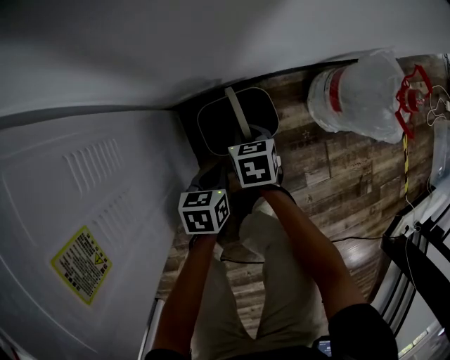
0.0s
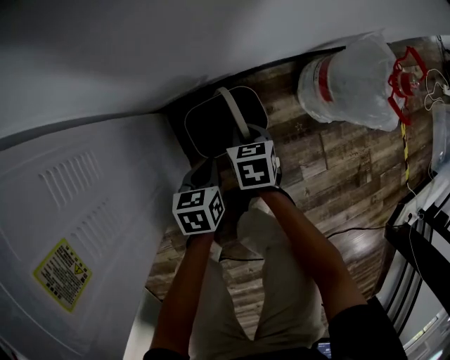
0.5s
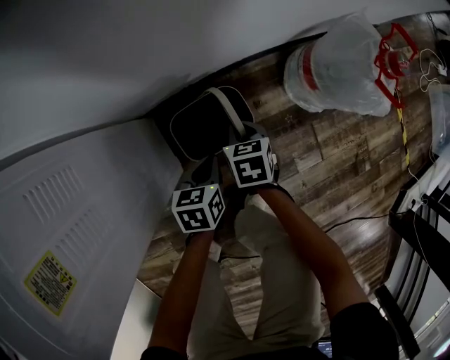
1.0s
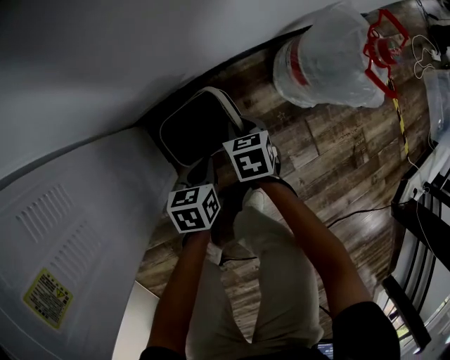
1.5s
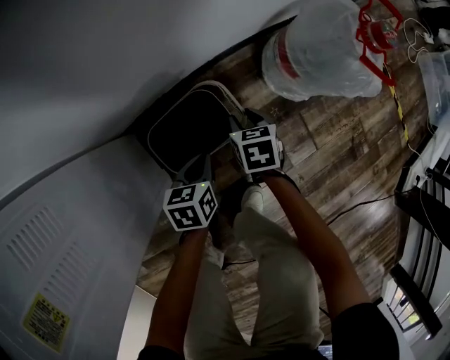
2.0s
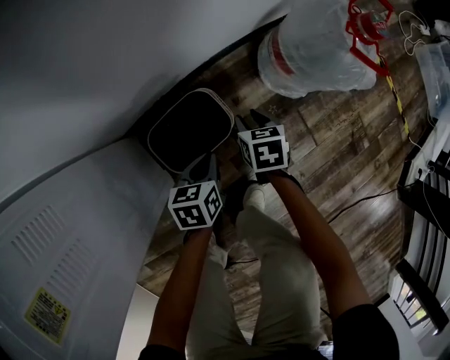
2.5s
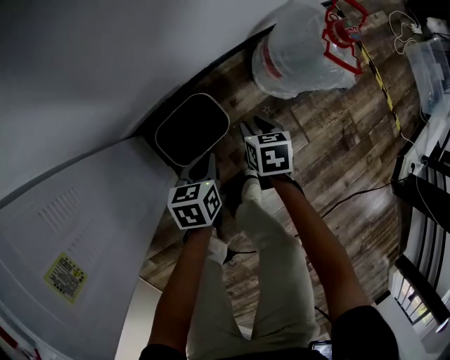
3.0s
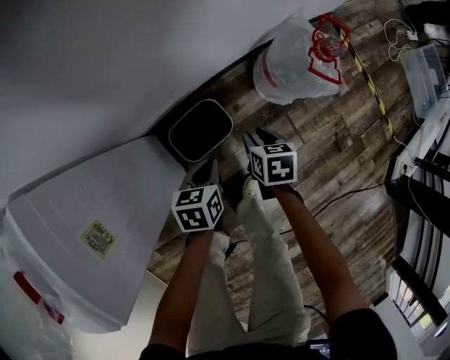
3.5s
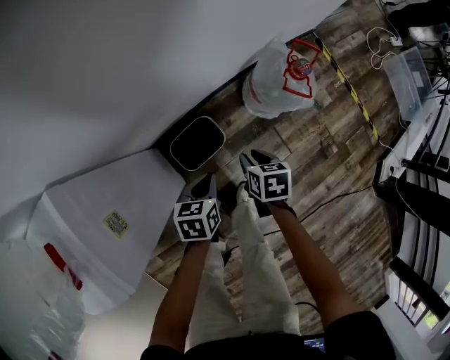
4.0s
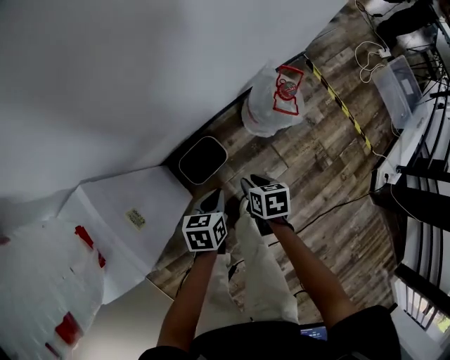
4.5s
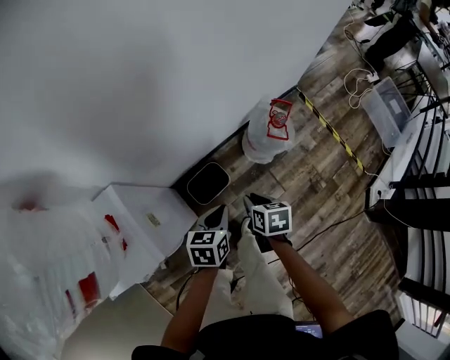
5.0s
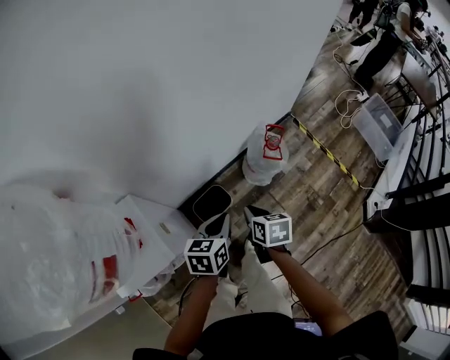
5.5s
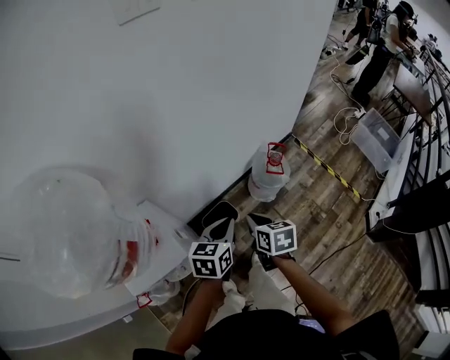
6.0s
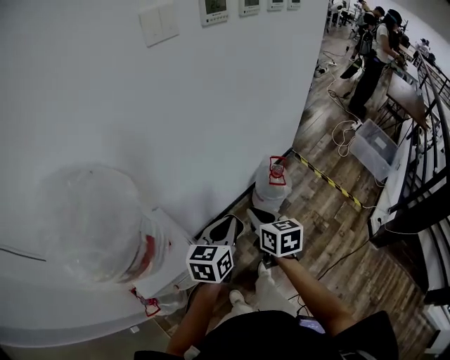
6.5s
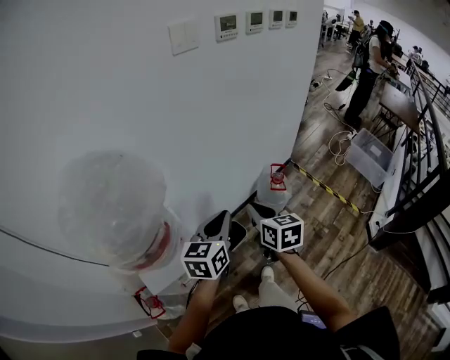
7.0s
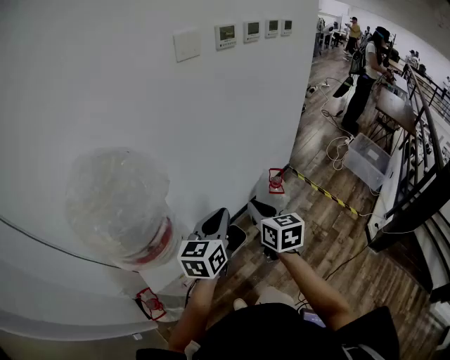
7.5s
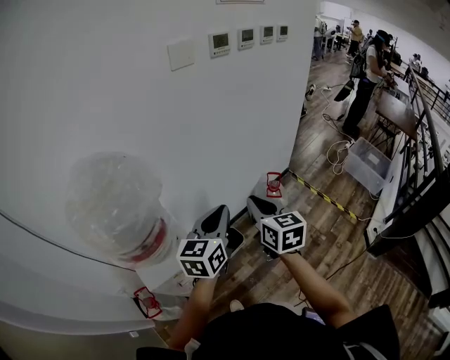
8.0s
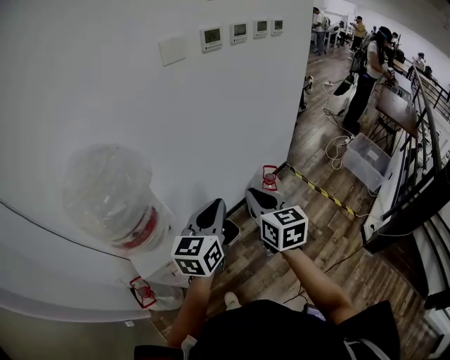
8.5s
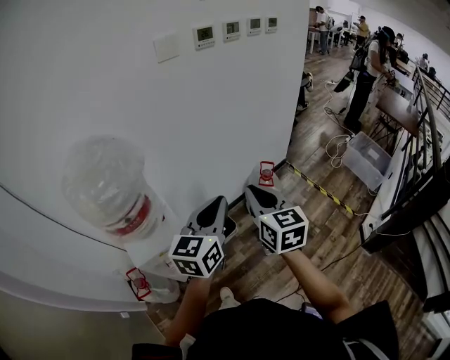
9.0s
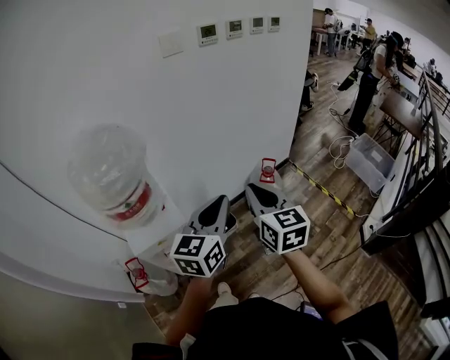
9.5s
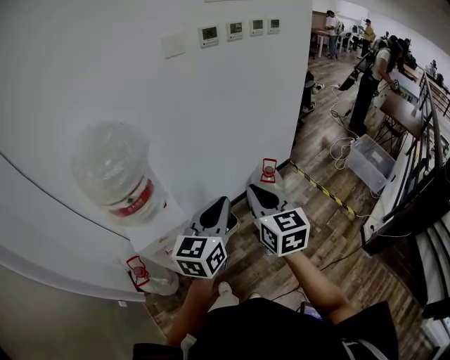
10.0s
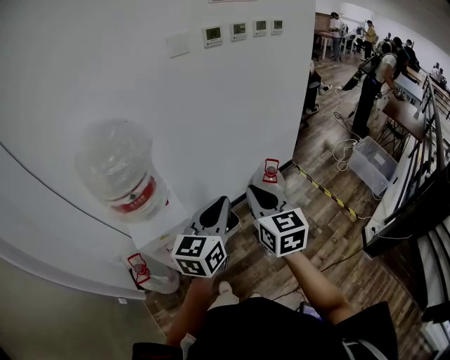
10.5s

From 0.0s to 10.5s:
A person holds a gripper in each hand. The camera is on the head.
From 0.0s to 2.0s: The left gripper travels to the right and downward by some 10 cm, while the right gripper shifts roughly 15 cm to the right and downward, and opens.
From 2.0s to 4.0s: Both grippers move upward, about 25 cm.
From 4.0s to 6.5s: The two grippers go some 50 cm upward. The right gripper points its fingers approximately 30 degrees further upward, and closes. The left gripper tilts its fingers roughly 30 degrees upward.
From 6.5s to 8.5s: Both grippers travel together upward and backward, some 20 cm. The right gripper swivels roughly 20 degrees.
From 8.5s to 10.5s: The right gripper is displaced backward by some 10 cm, while the left gripper shifts approximately 10 cm backward and to the right.

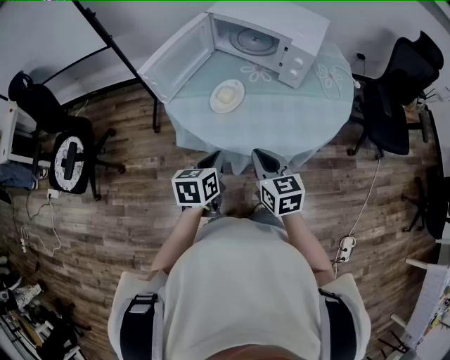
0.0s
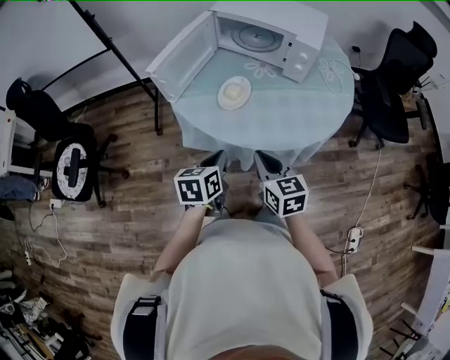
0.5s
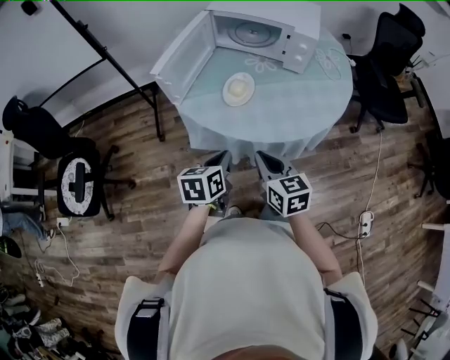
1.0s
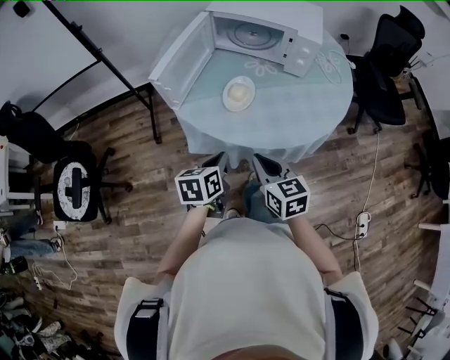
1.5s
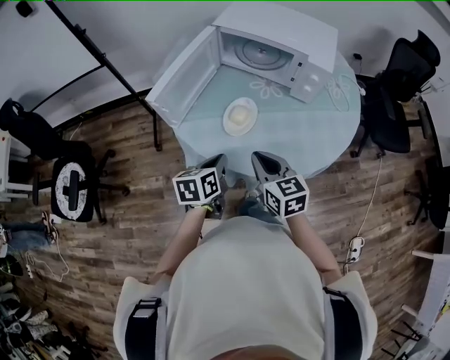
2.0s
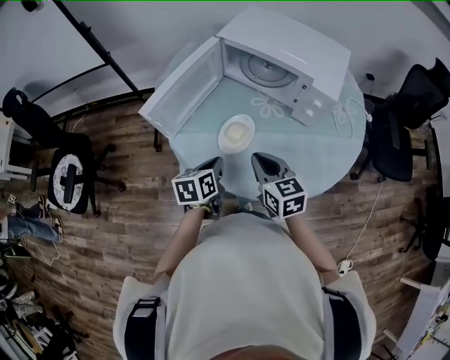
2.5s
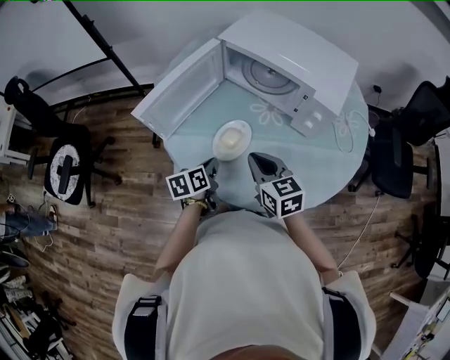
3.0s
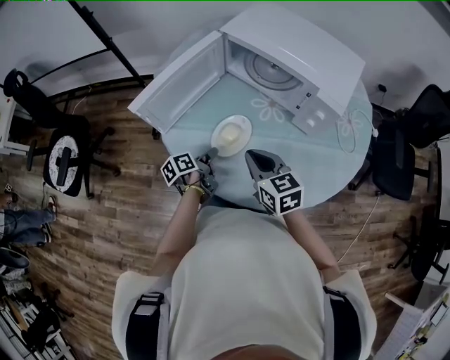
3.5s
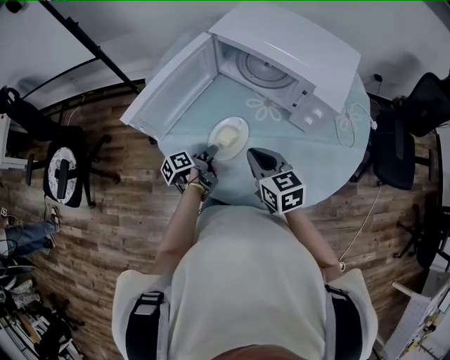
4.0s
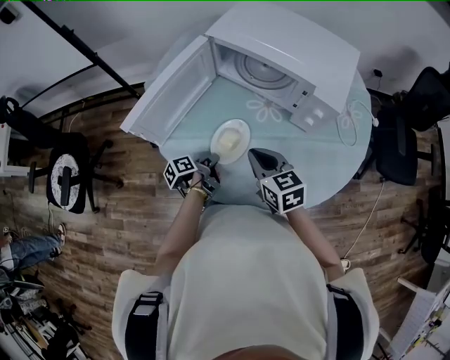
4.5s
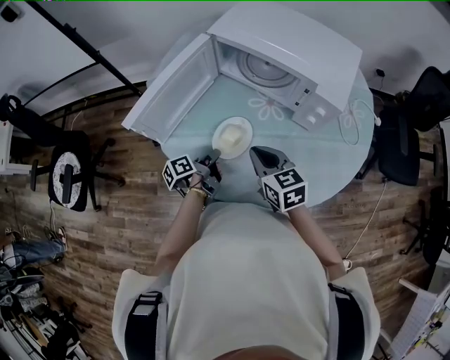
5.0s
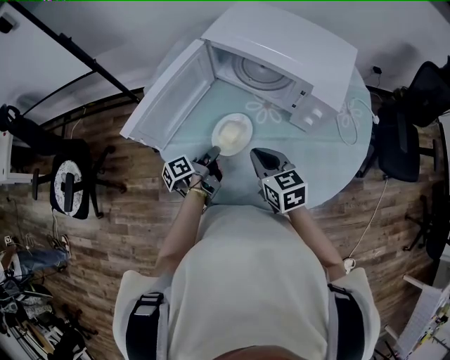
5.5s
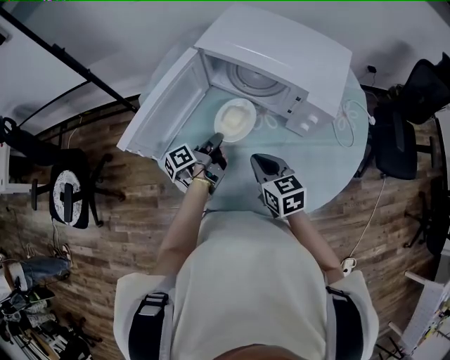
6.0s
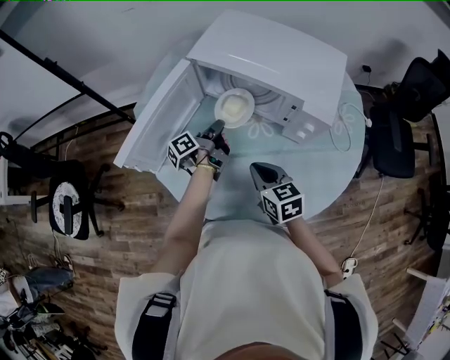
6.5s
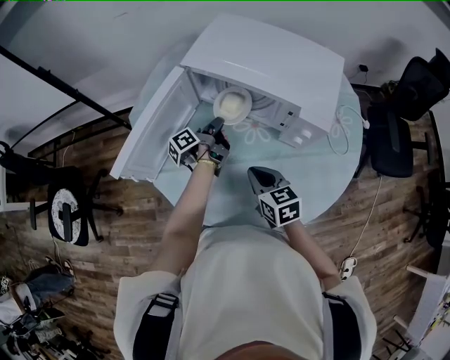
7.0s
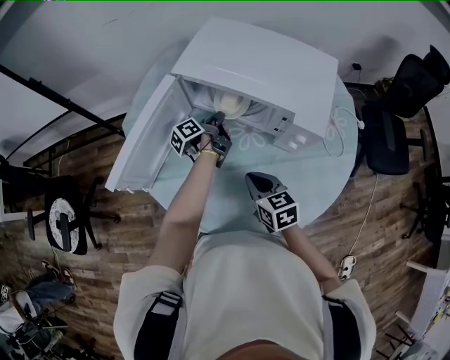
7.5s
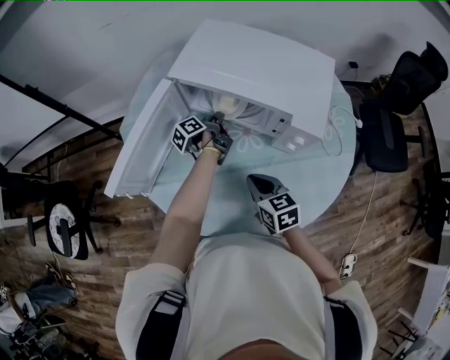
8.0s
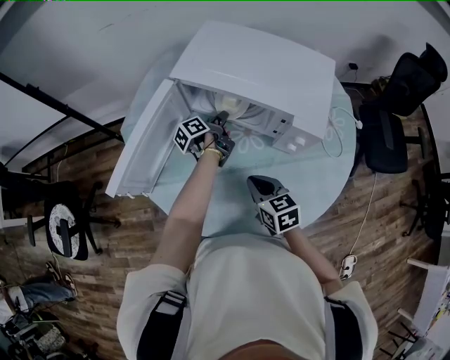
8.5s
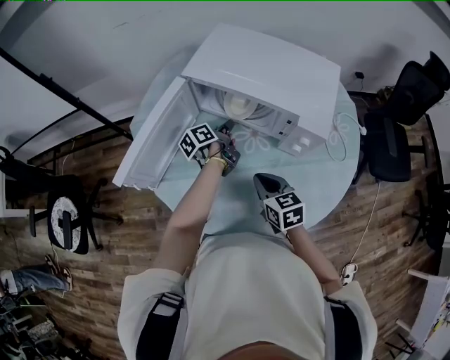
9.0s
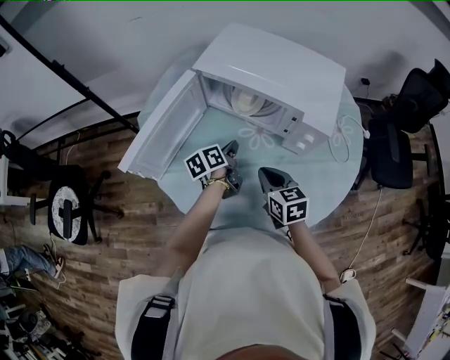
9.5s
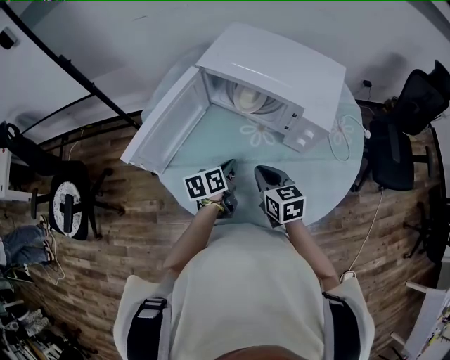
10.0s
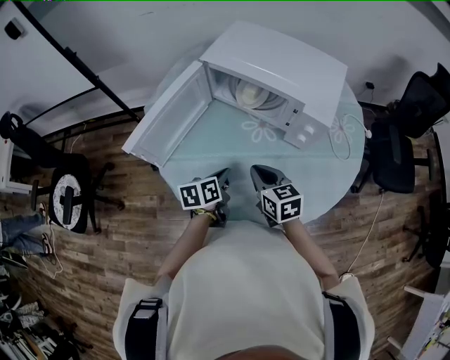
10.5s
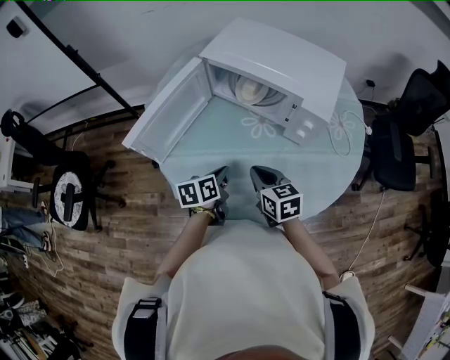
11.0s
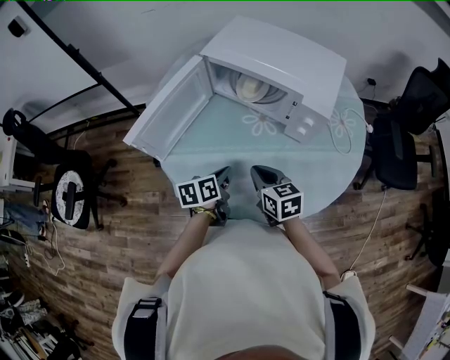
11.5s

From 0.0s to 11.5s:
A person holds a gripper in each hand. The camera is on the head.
From 0.0s to 2.0s: The right gripper is displaced to the left and forward by approximately 10 cm, while the left gripper moves forward and to the left, approximately 10 cm.
From 2.0s to 4.0s: The right gripper shifts some 15 cm forward and to the right; the left gripper shifts about 20 cm downward and forward, twists roughly 50 degrees counterclockwise, seen from behind, and opens its fingers.
From 4.0s to 6.0s: The left gripper goes some 10 cm forward and upward, and closes.
From 6.0s to 7.5s: The left gripper is displaced forward and to the right by roughly 15 cm.
From 7.5s to 9.5s: The left gripper goes some 10 cm backward, and turns by some 30 degrees.
From 9.5s to 11.5s: The right gripper is displaced backward by about 5 cm. The left gripper heads backward, covering roughly 15 cm.

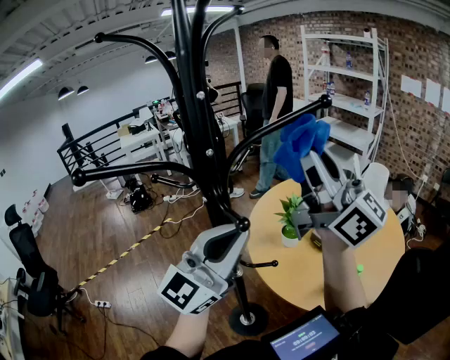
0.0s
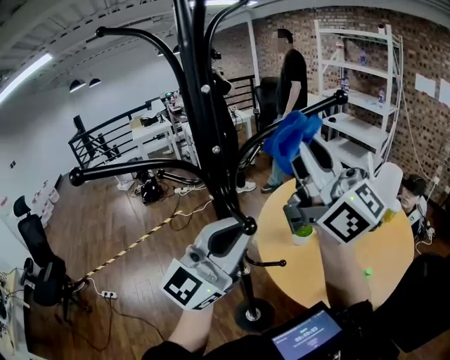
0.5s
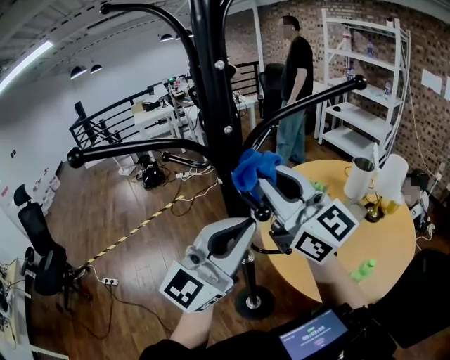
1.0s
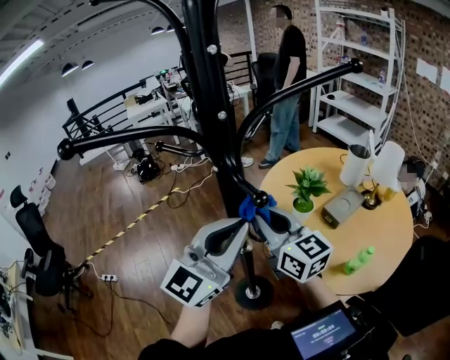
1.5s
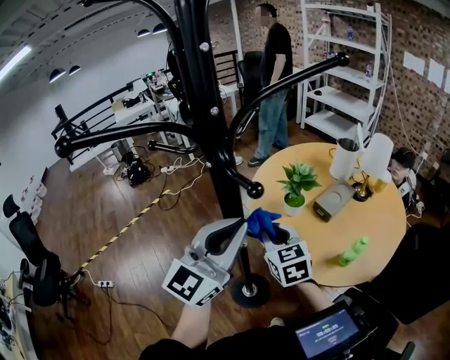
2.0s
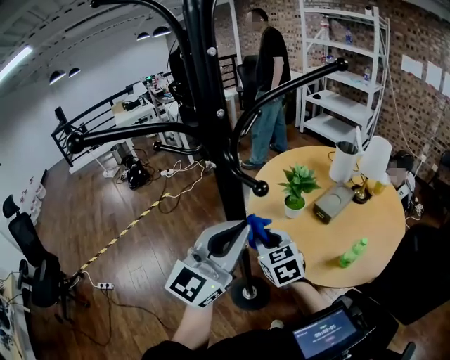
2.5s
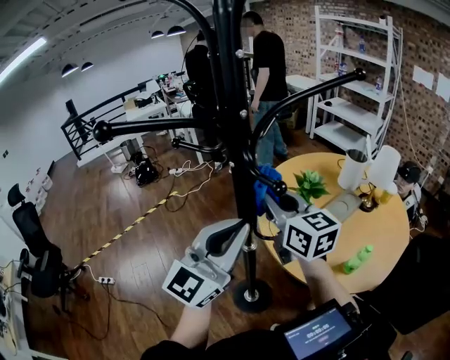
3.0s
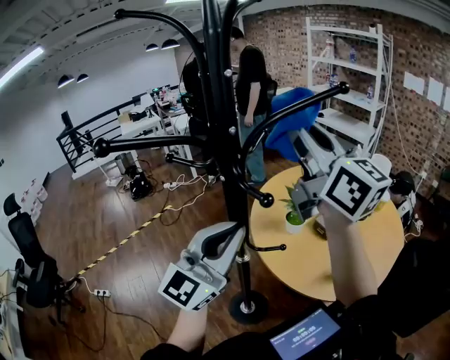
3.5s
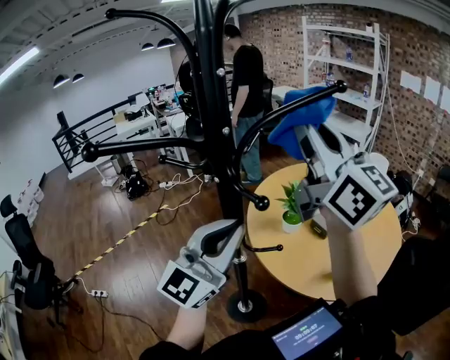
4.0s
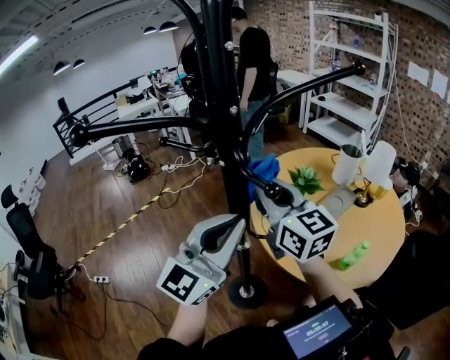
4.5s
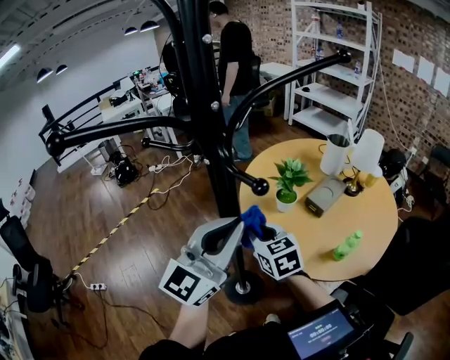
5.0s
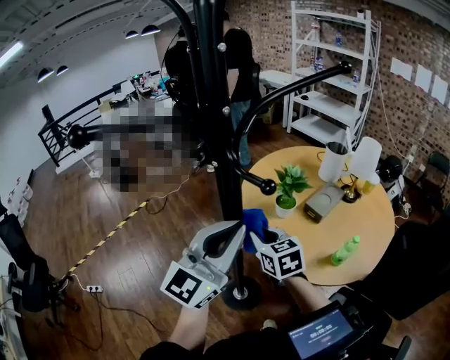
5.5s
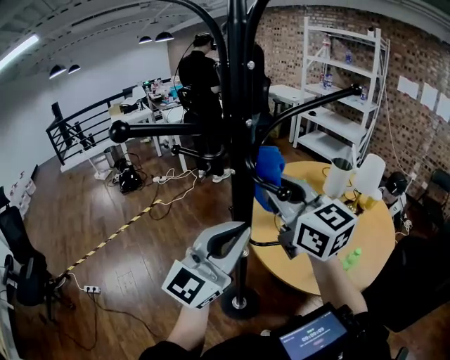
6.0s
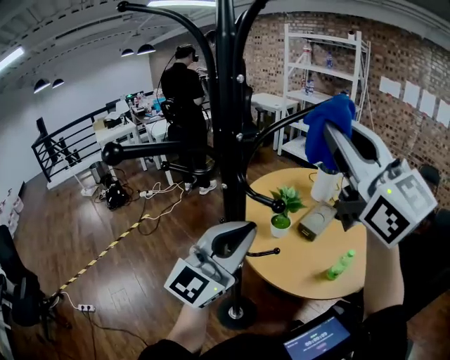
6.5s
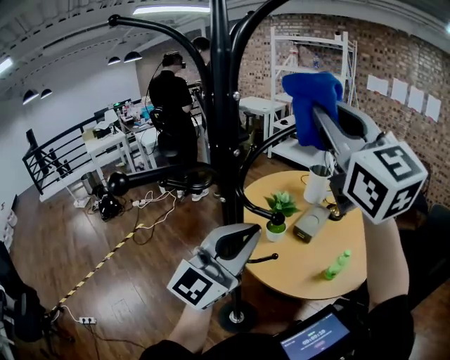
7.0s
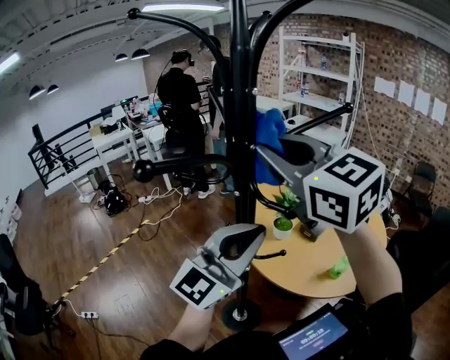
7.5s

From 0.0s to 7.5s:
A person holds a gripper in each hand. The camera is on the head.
From 0.0s to 2.0s: The right gripper goes about 40 cm downward, and tilts its fingers approximately 60 degrees downward; the left gripper heads downward, covering about 10 cm.
From 2.0s to 4.0s: The right gripper goes about 40 cm upward, and angles its fingers upward, by roughly 50 degrees.
From 4.0s to 5.5s: The right gripper shifts roughly 40 cm downward, and tilts its fingers roughly 60 degrees downward.
From 5.5s to 7.5s: The right gripper is displaced upward by approximately 40 cm, and turns by some 40 degrees, while the left gripper travels upward by roughly 10 cm.
